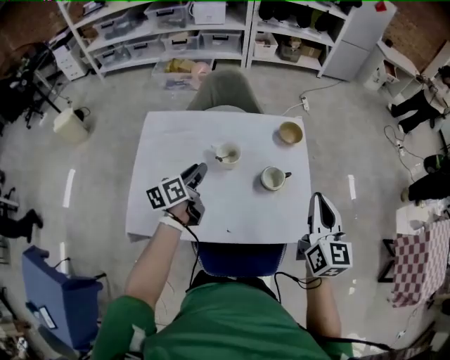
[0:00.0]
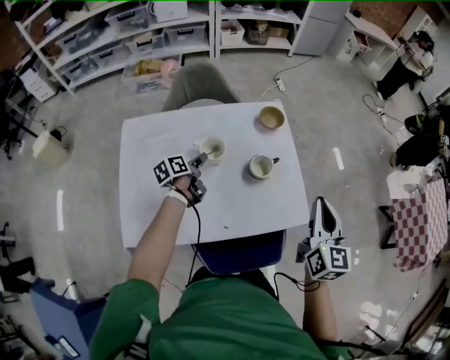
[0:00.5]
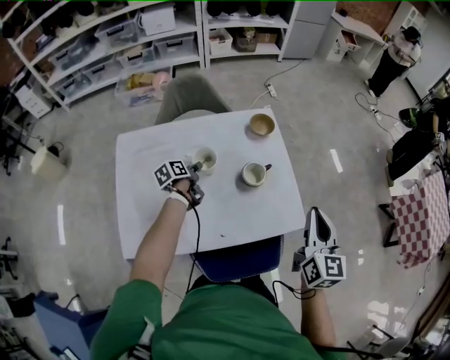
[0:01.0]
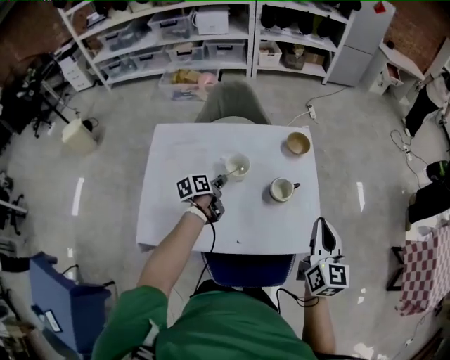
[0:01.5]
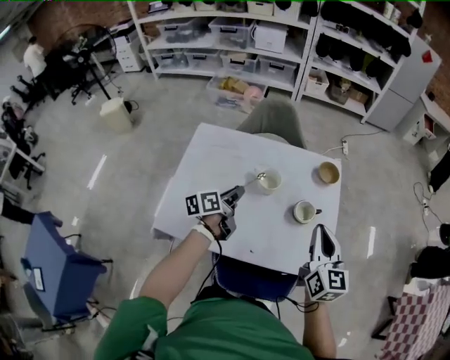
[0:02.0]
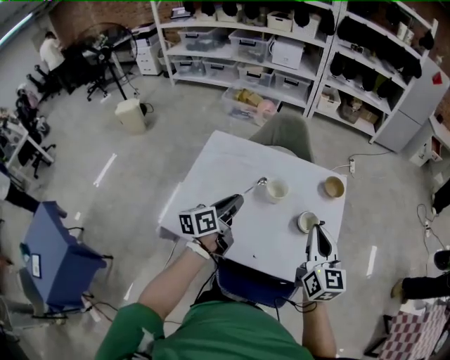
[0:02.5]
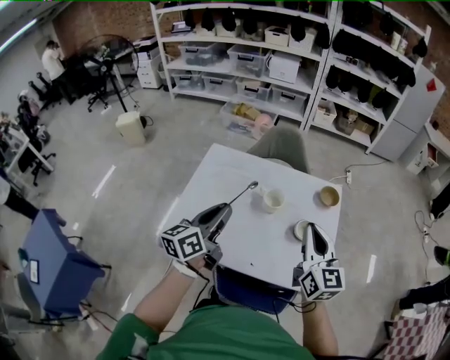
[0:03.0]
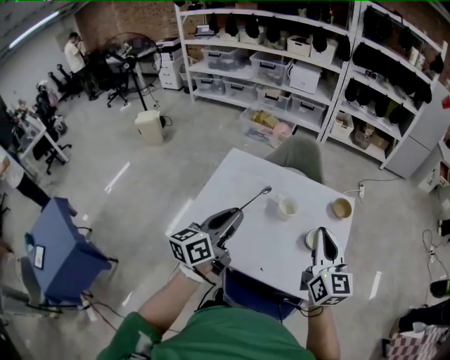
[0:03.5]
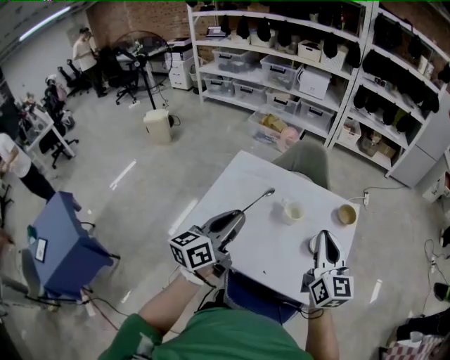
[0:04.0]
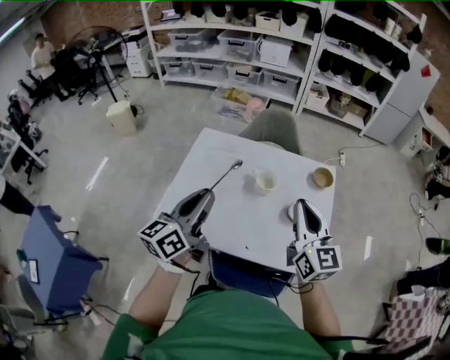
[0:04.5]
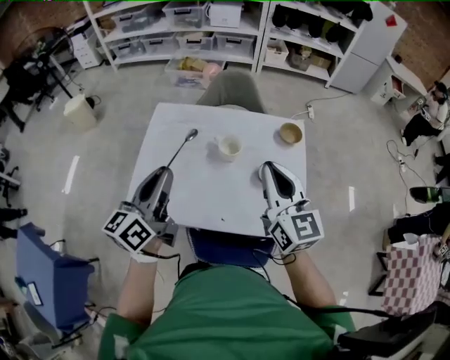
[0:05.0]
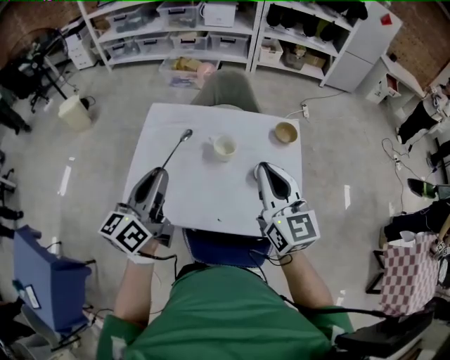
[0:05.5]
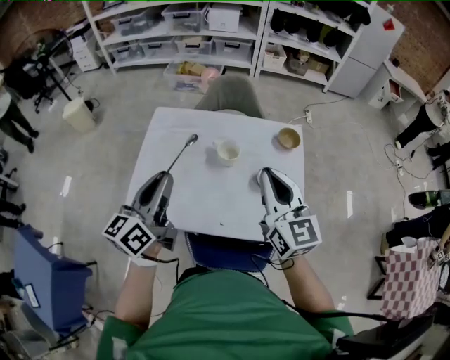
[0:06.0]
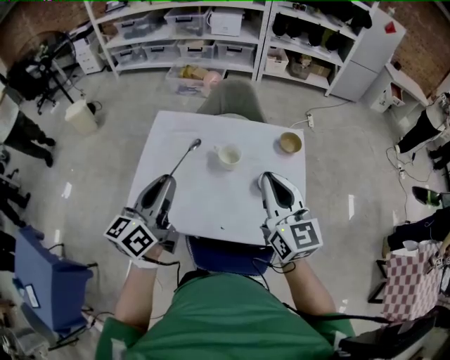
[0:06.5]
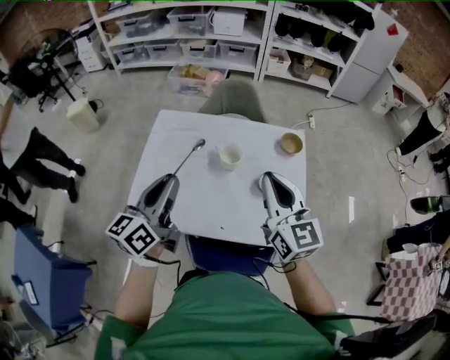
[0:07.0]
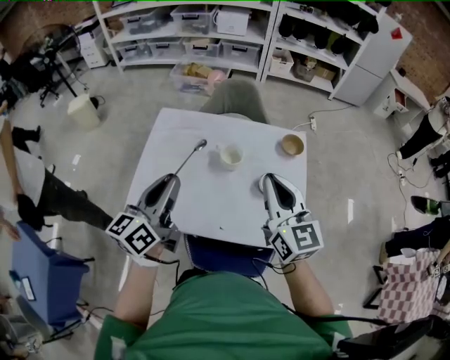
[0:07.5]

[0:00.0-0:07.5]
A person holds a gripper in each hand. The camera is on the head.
0:00.0 to 0:02.0: The left gripper reaches roughly 15 cm downward, then returns, while the right gripper travels to the left by roughly 5 cm.
0:02.0 to 0:04.0: The right gripper travels upward and to the left by approximately 10 cm; the left gripper heads upward and backward, covering some 25 cm, and swivels approximately 30 degrees.
0:04.0 to 0:05.5: The grippers move only a little.
0:05.5 to 0:07.5: Neither gripper changes place.

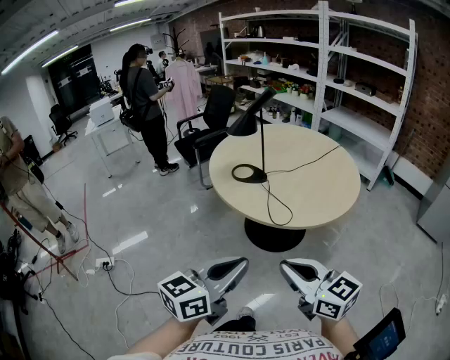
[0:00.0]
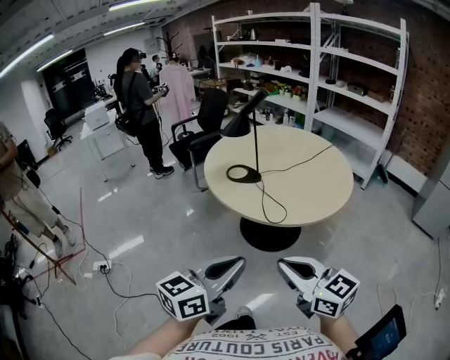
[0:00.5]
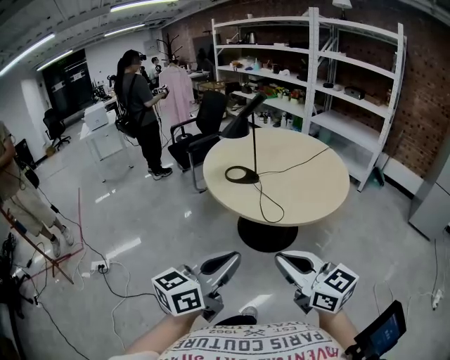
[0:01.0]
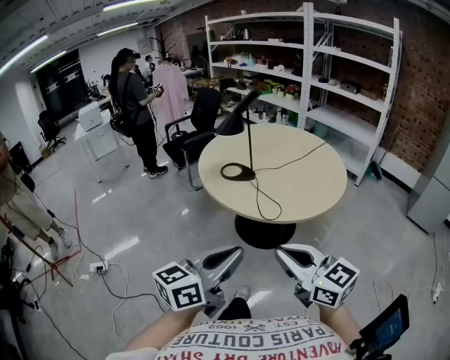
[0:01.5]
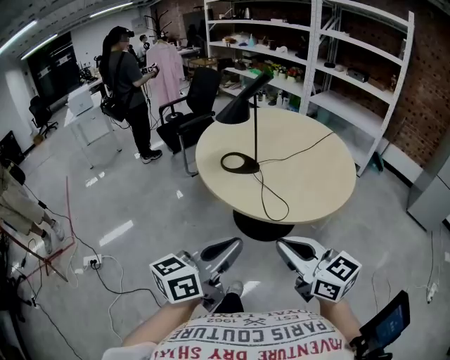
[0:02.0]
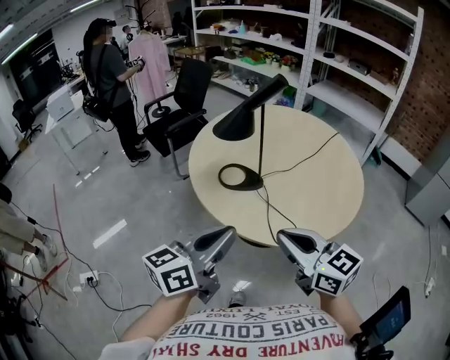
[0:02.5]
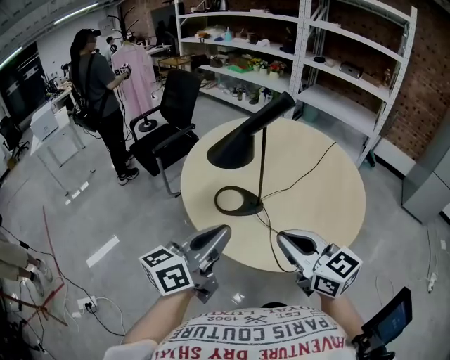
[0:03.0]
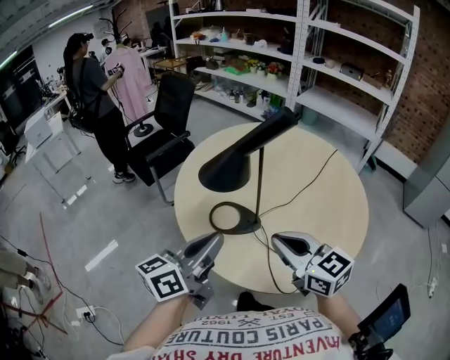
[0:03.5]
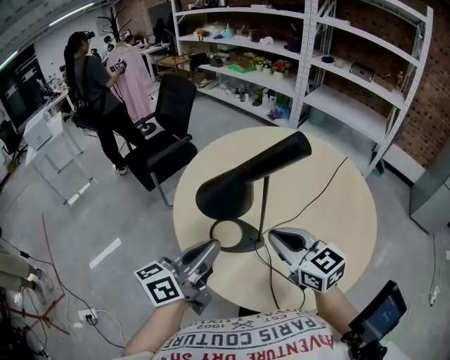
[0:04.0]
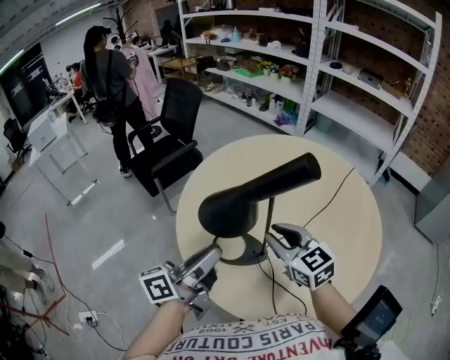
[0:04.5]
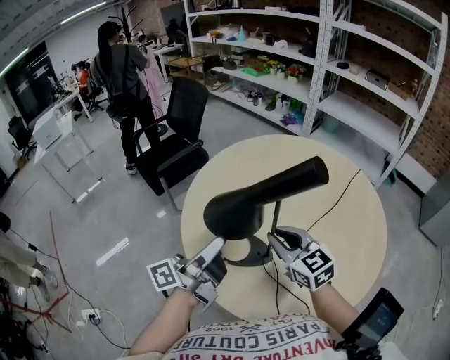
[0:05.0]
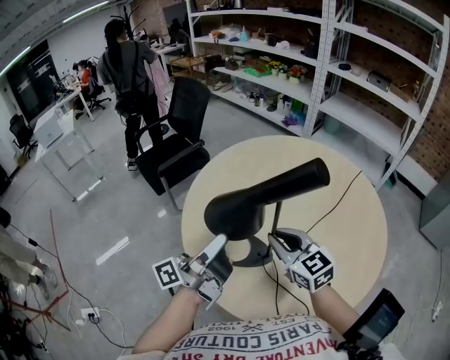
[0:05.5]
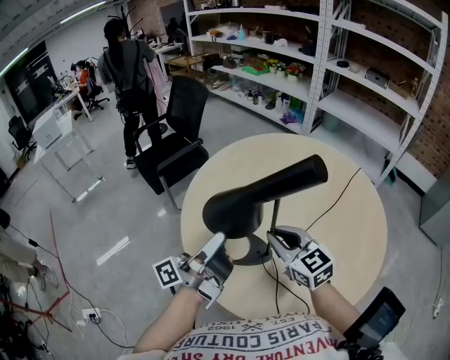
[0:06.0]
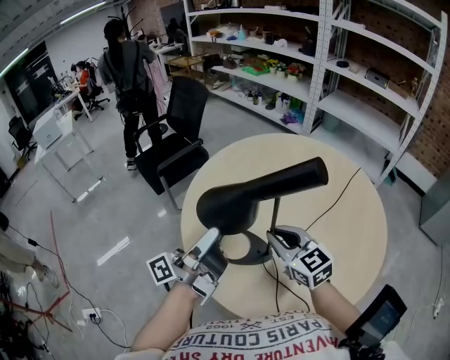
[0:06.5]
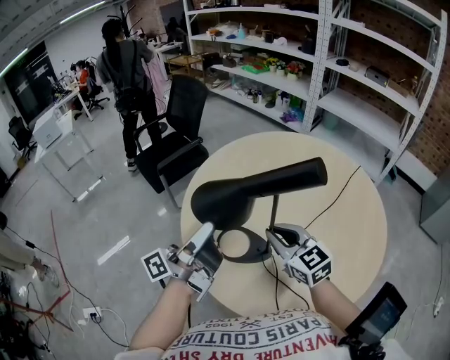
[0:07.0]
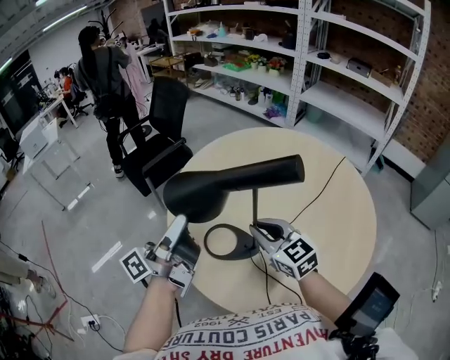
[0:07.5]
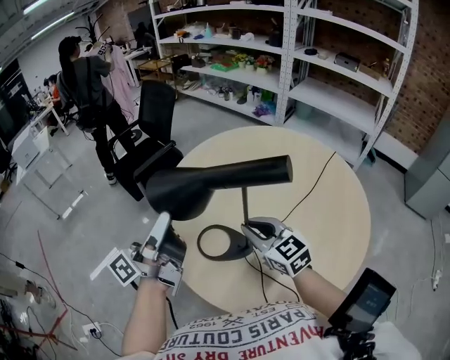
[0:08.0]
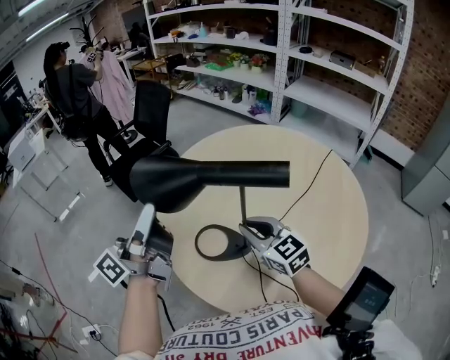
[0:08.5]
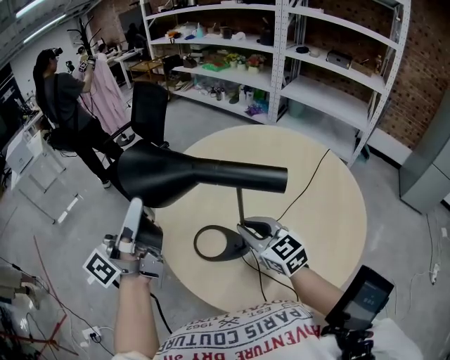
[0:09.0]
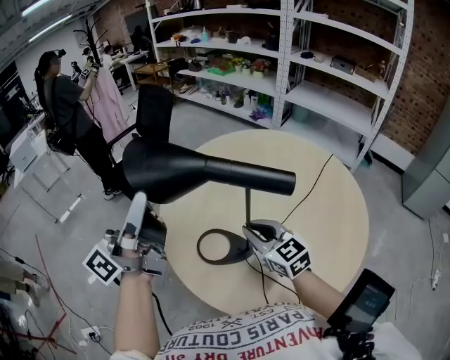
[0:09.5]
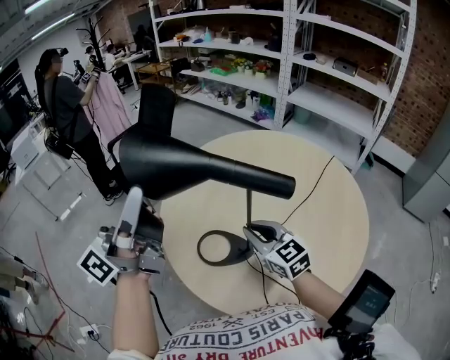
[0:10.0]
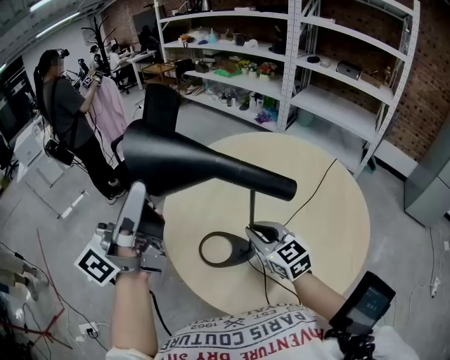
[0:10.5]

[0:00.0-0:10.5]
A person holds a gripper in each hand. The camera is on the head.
0:00.0 to 0:02.0: The two grippers go approximately 10 cm forward.
0:02.0 to 0:04.0: The two grippers go about 40 cm forward.
0:04.0 to 0:06.5: The grippers both shift forward by roughly 5 cm. The left gripper turns by roughly 40 degrees, and opens, then closes once more.
0:06.5 to 0:08.5: The left gripper shifts roughly 10 cm upward and to the left, and swivels some 20 degrees.
0:08.5 to 0:10.5: The left gripper goes about 10 cm upward.

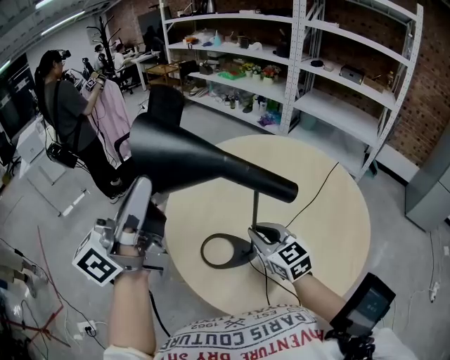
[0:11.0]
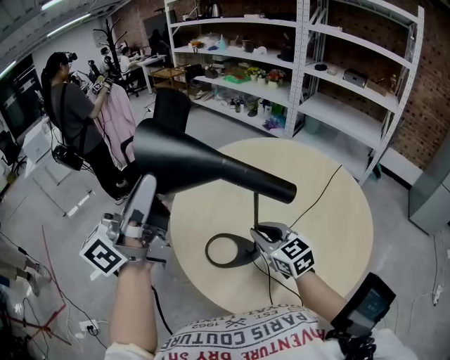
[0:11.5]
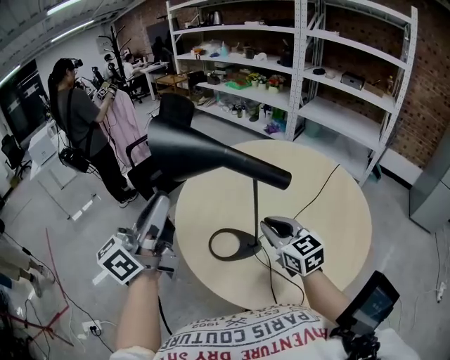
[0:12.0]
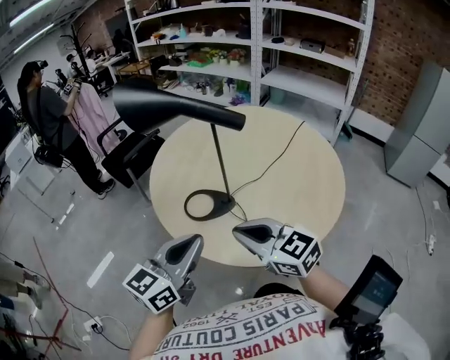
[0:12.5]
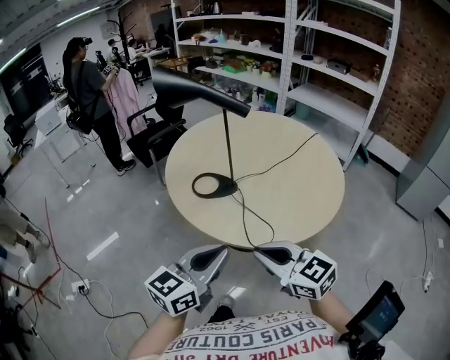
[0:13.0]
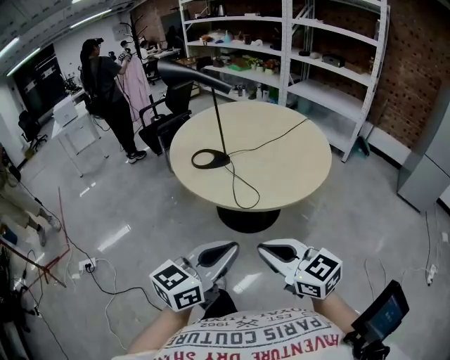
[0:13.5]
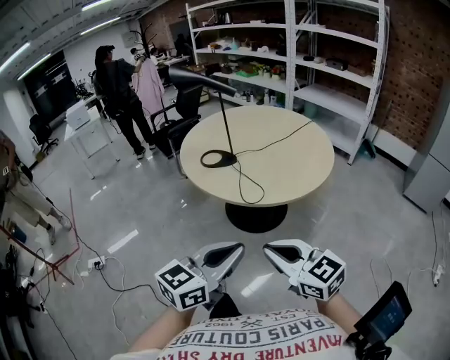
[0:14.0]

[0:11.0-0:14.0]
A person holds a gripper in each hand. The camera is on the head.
0:11.0 to 0:12.5: The left gripper shifts about 30 cm downward, backward and to the right, and points its fingers some 30 degrees further downward. Meanwhile the right gripper shifts about 20 cm backward.
0:12.5 to 0:14.0: The left gripper moves backward and to the right, roughly 40 cm; the right gripper moves backward, approximately 35 cm.

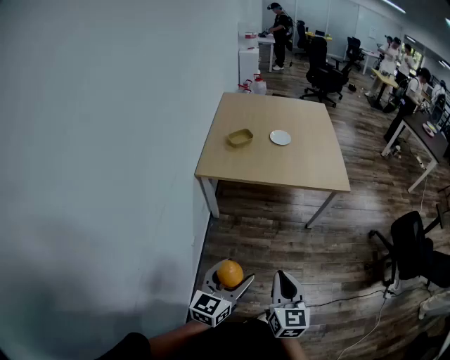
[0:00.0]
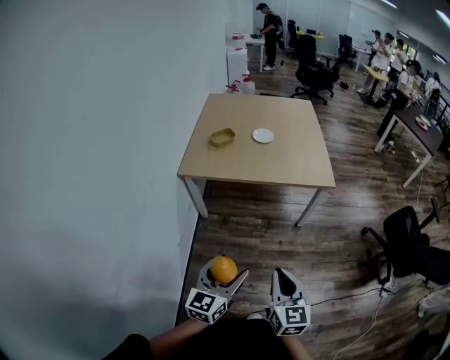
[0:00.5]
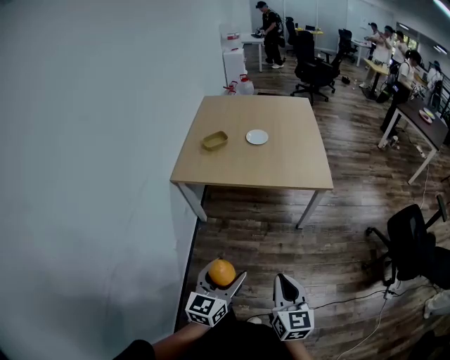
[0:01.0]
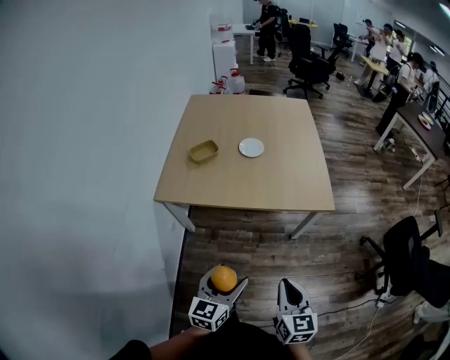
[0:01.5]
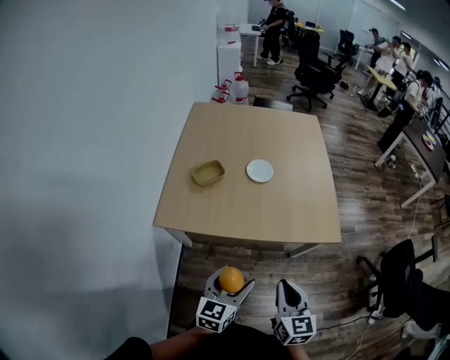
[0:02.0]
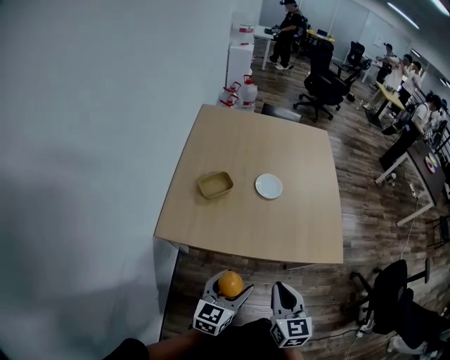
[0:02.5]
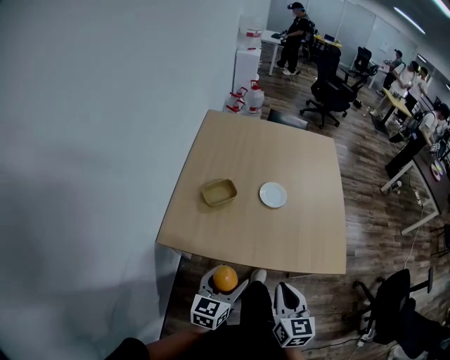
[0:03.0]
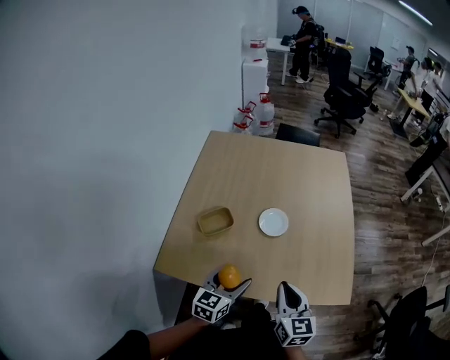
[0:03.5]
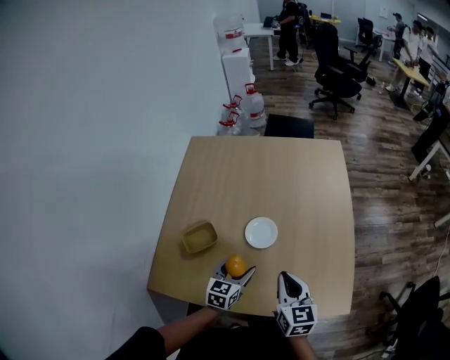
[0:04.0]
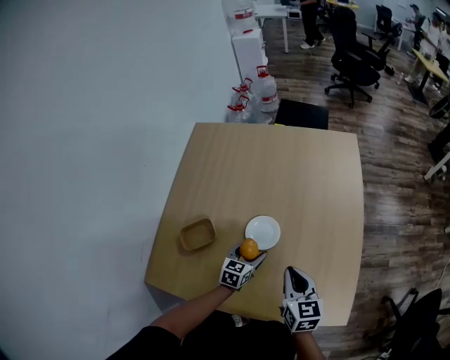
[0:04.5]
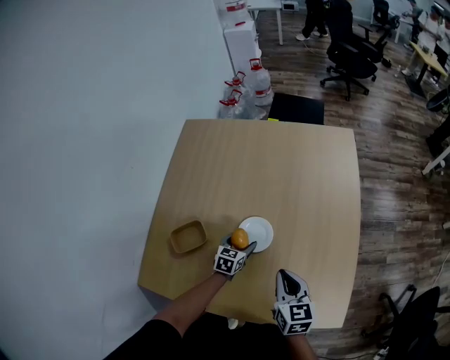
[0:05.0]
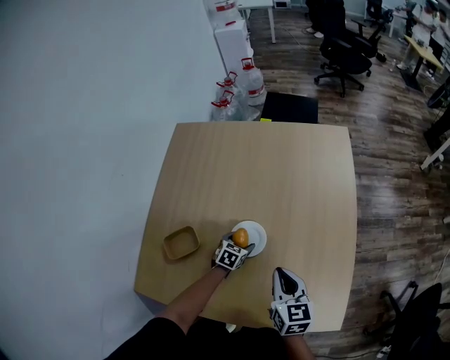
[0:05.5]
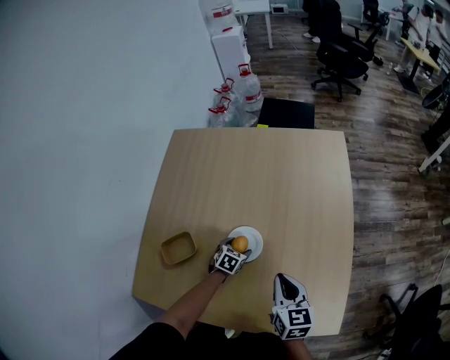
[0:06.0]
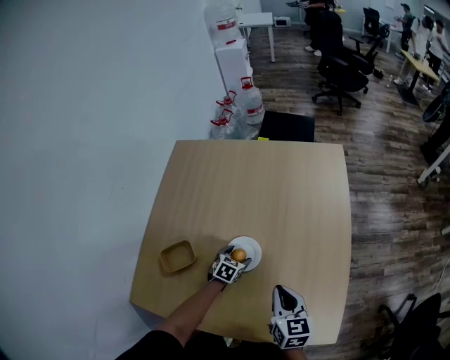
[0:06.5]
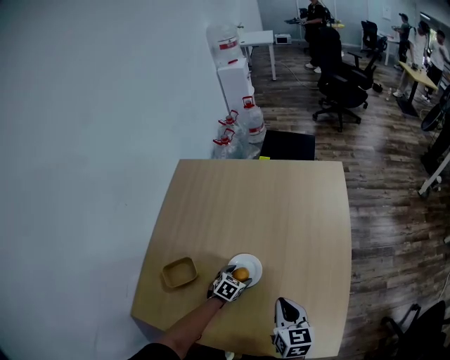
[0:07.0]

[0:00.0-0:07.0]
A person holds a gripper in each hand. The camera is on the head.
0:00.0 to 0:02.0: The two grippers go approximately 35 cm forward.
0:02.0 to 0:03.5: The grippers both shift forward by approximately 20 cm.
0:03.5 to 0:05.0: The left gripper shifts some 35 cm forward and downward, and rotates roughly 20 degrees; the right gripper is displaced forward and downward by about 20 cm.
0:05.0 to 0:07.0: The left gripper ends up about 5 cm from where it was, and turns by roughly 20 degrees.
